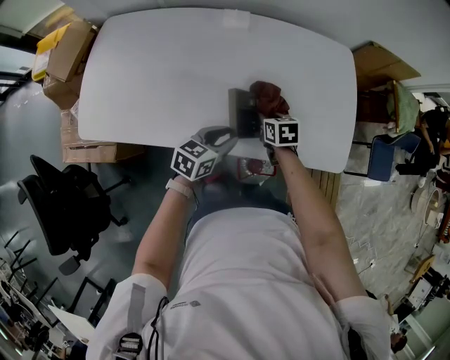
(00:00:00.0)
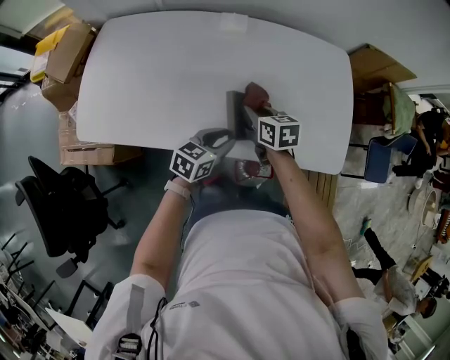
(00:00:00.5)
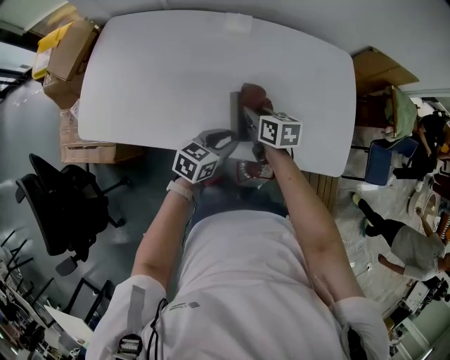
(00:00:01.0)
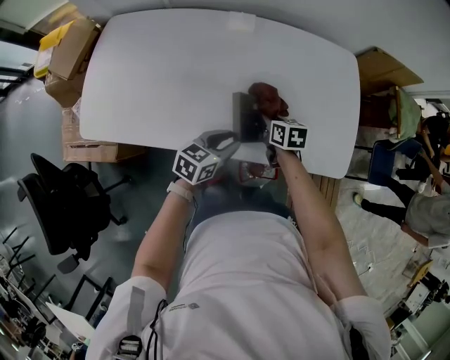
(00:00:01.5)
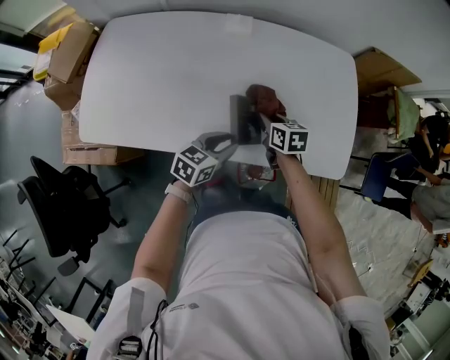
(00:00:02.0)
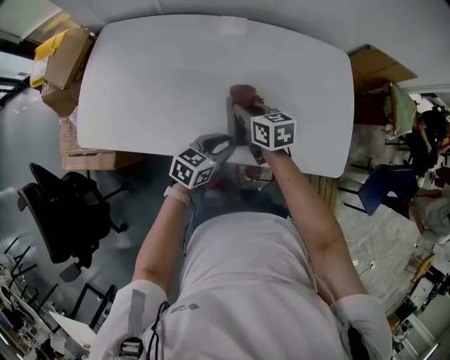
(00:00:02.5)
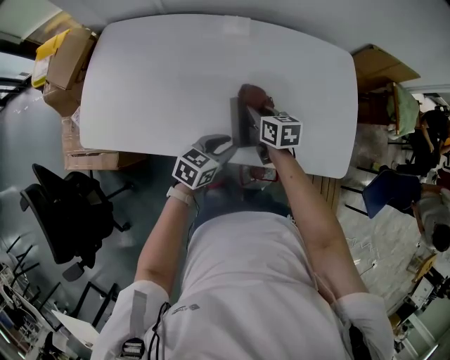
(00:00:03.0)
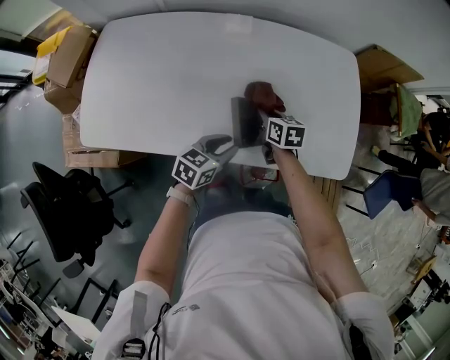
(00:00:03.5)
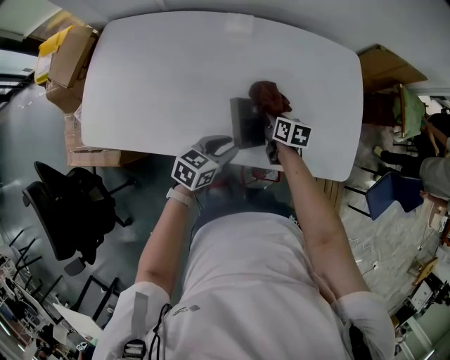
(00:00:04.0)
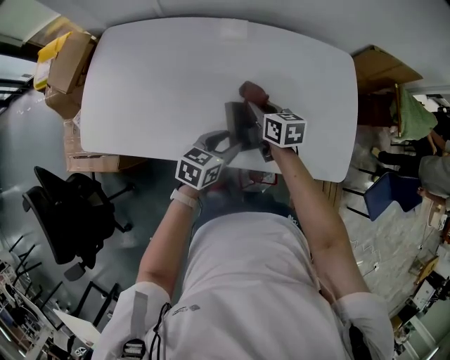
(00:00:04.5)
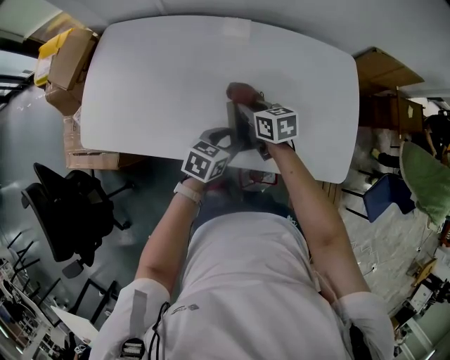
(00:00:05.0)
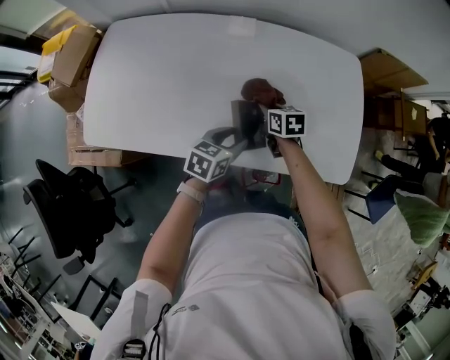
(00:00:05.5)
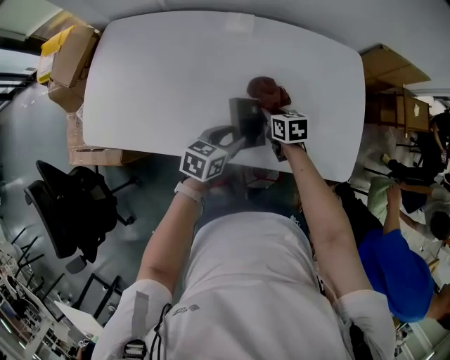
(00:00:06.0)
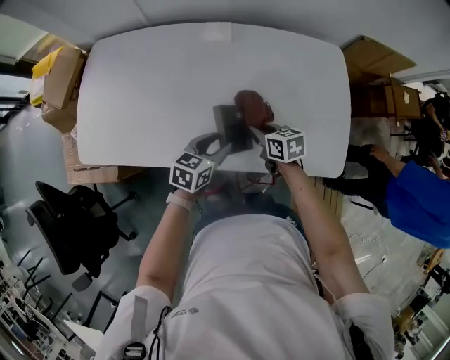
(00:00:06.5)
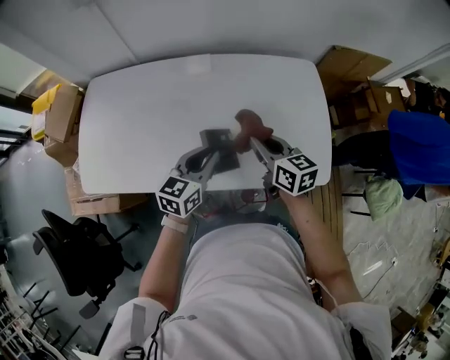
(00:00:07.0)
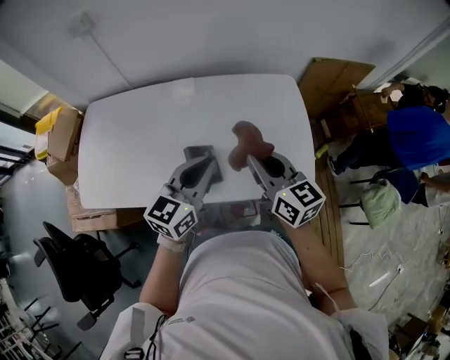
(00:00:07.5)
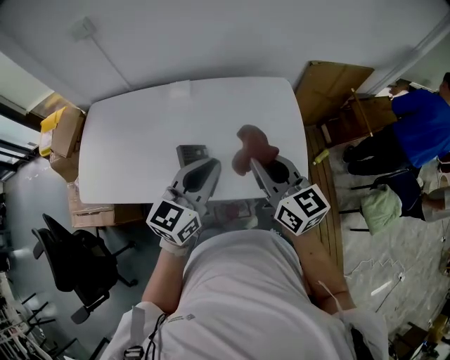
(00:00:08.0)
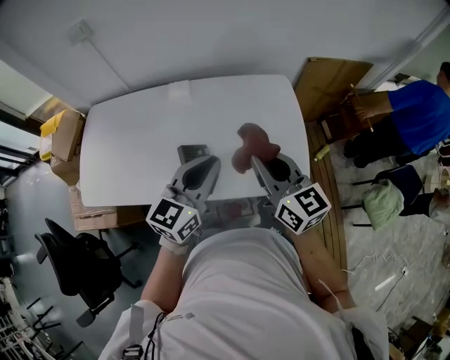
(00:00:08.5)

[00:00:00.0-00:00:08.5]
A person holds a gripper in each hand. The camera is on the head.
00:00:04.0 to 00:00:06.5: The right gripper moves about 10 cm to the left and comes back.
00:00:06.5 to 00:00:08.5: The right gripper shifts about 30 cm upward, and points its fingers approximately 40 degrees further upward; the left gripper travels upward and to the right by approximately 30 cm, swivels approximately 30 degrees, and closes up.

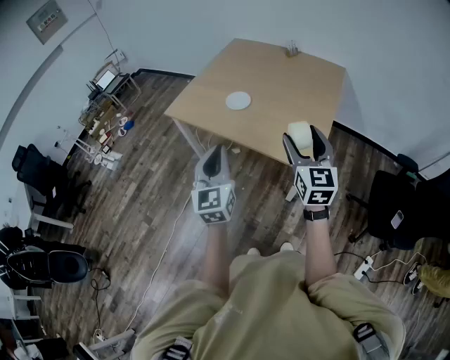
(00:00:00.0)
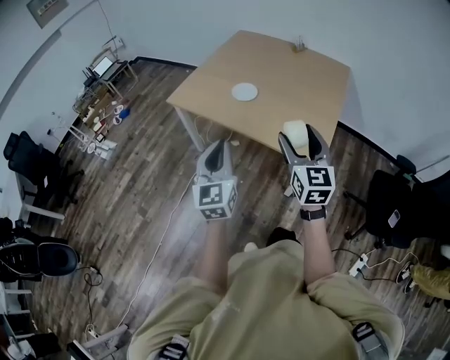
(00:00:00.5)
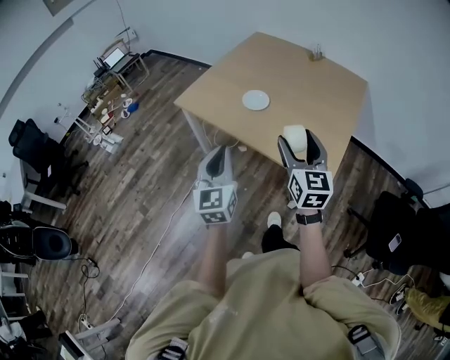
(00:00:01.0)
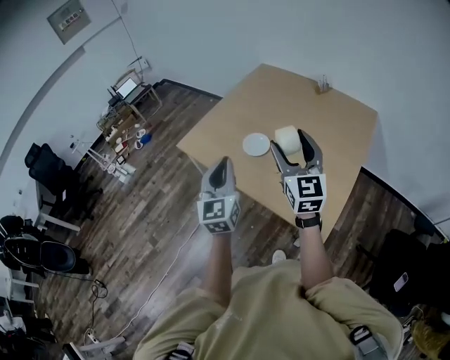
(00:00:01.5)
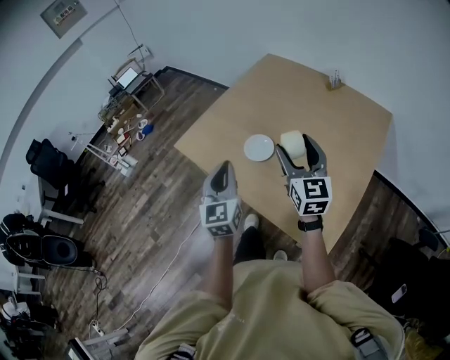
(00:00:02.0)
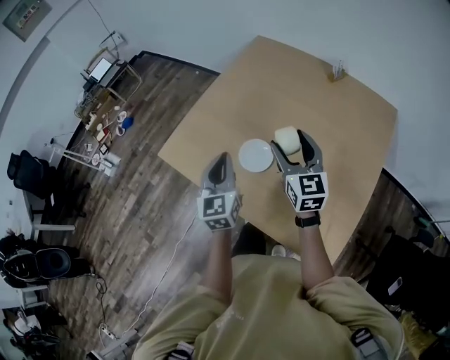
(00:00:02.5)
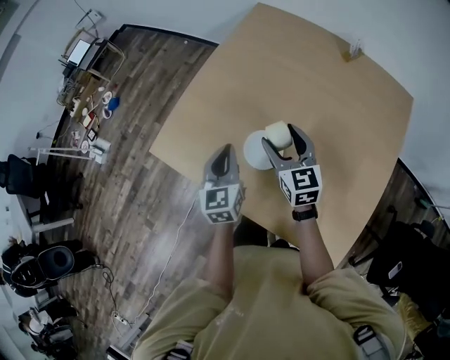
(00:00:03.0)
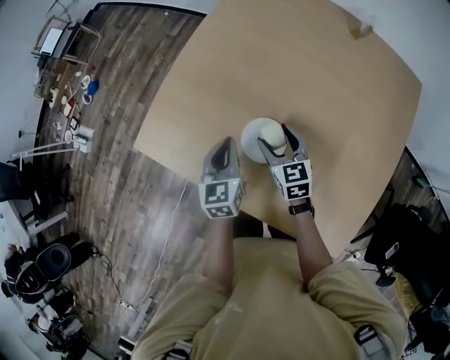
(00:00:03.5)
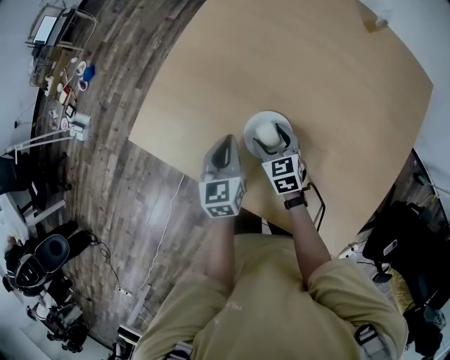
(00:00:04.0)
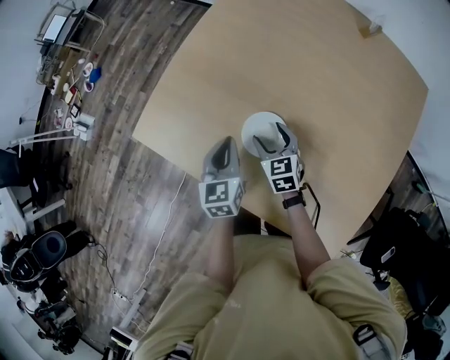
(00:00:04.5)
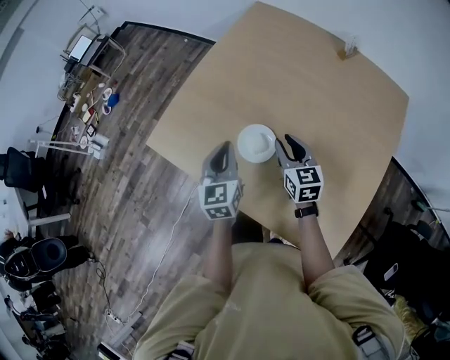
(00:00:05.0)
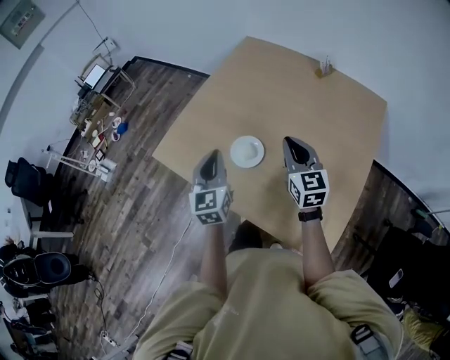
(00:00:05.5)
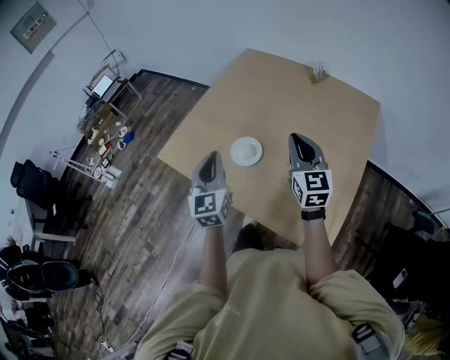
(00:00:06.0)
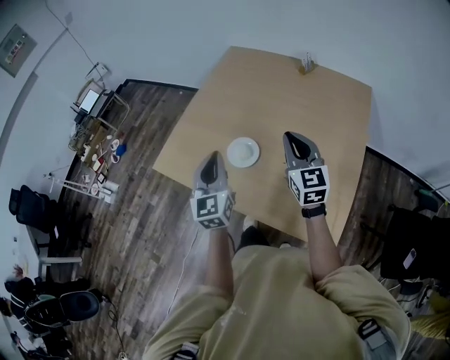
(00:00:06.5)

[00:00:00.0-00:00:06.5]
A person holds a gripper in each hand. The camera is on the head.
00:00:00.0 to 00:00:02.0: Both grippers move forward, some 35 cm.
00:00:02.0 to 00:00:04.5: The right gripper shifts roughly 40 cm downward and forward, and points its fingers roughly 40 degrees further downward, while the left gripper travels forward and downward by some 40 cm, and rotates some 30 degrees.
00:00:04.5 to 00:00:06.5: The two grippers go approximately 35 cm upward and backward. The right gripper tilts its fingers about 30 degrees upward, and closes up. Meanwhile the left gripper rotates approximately 30 degrees.

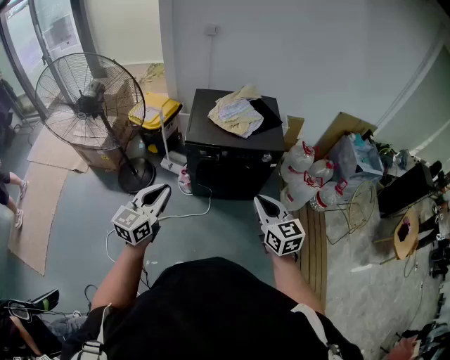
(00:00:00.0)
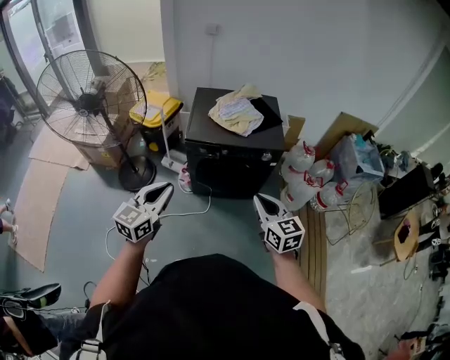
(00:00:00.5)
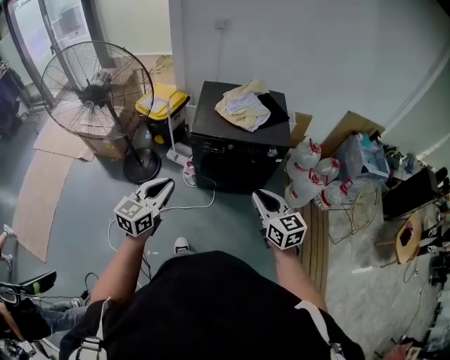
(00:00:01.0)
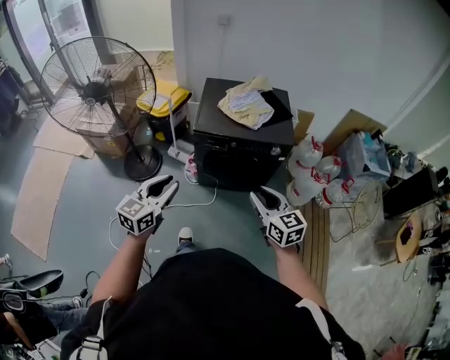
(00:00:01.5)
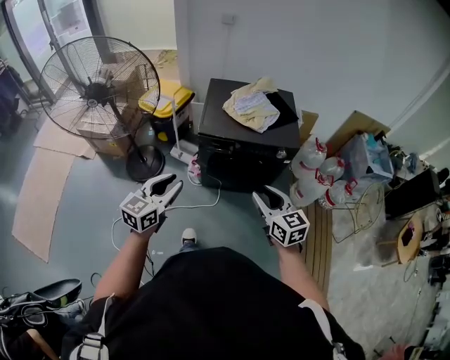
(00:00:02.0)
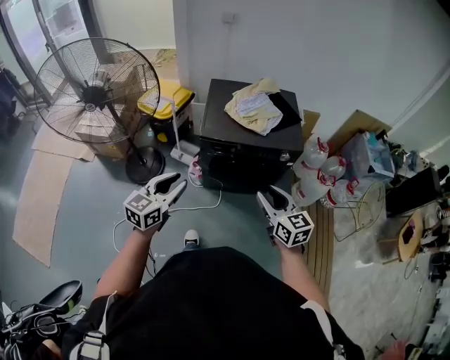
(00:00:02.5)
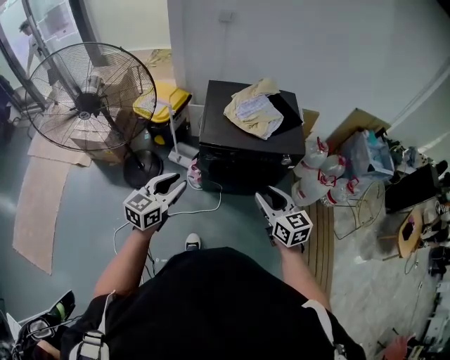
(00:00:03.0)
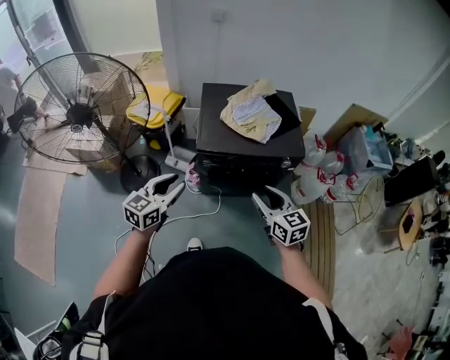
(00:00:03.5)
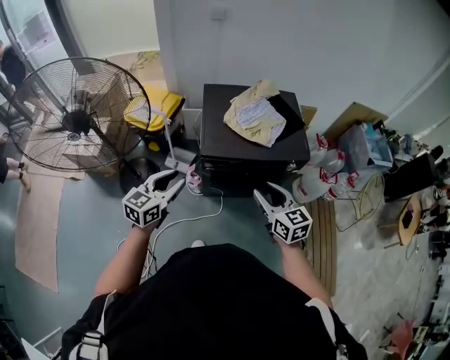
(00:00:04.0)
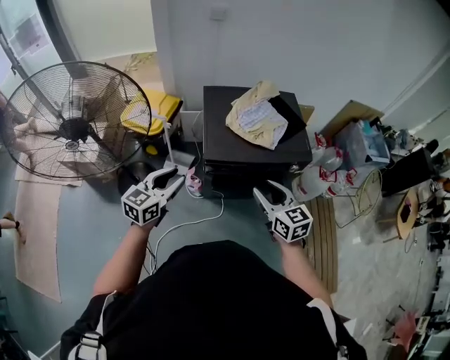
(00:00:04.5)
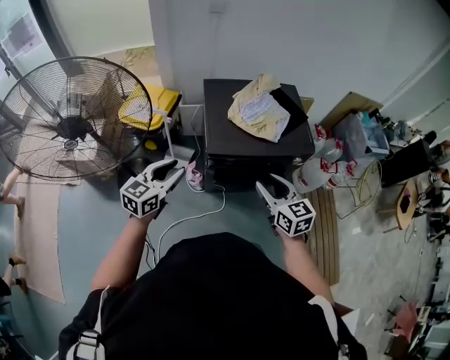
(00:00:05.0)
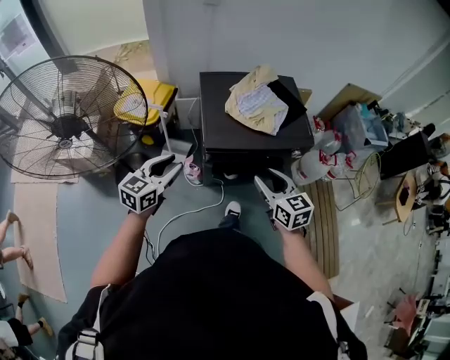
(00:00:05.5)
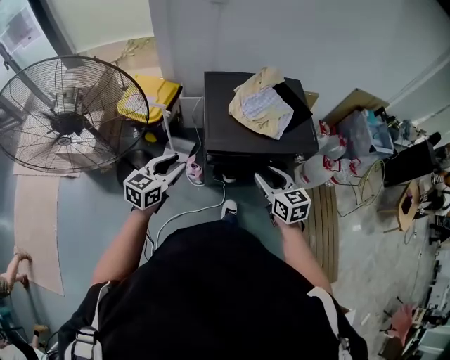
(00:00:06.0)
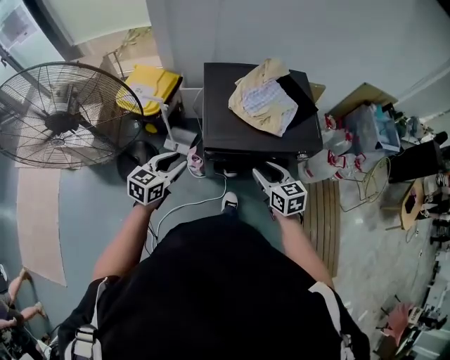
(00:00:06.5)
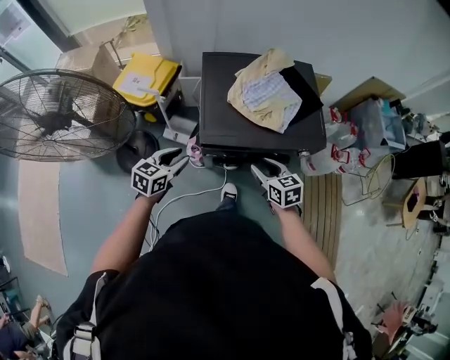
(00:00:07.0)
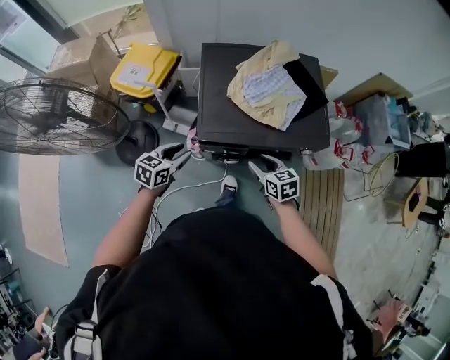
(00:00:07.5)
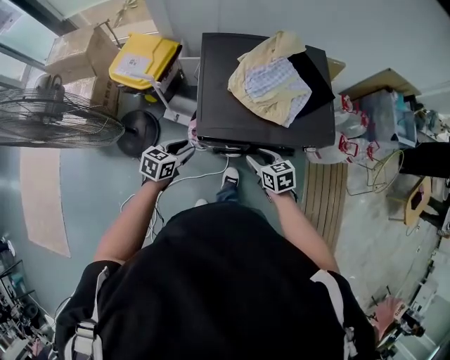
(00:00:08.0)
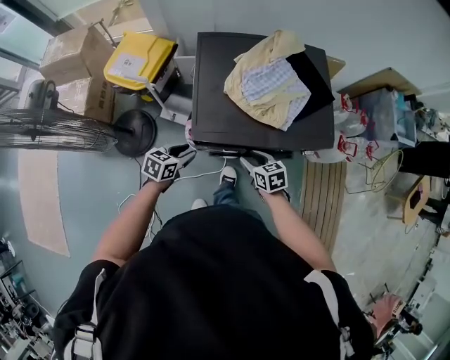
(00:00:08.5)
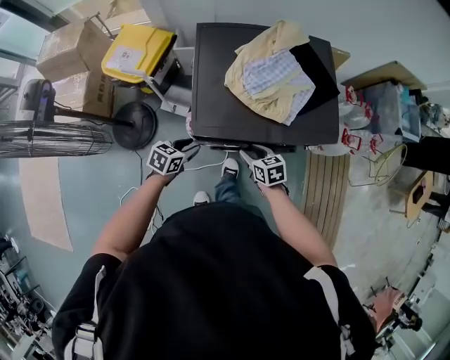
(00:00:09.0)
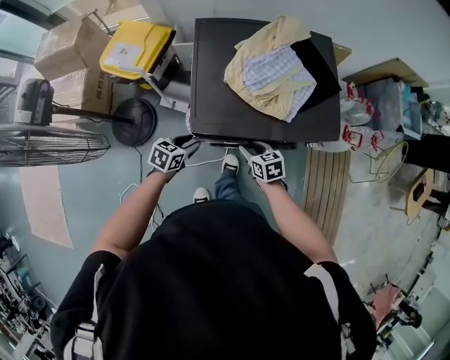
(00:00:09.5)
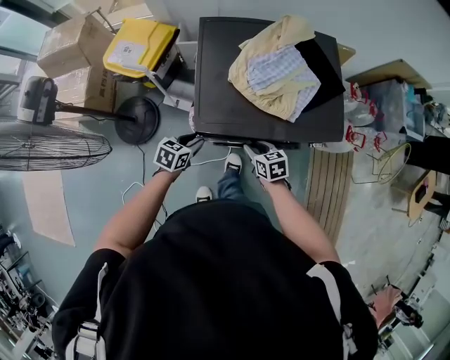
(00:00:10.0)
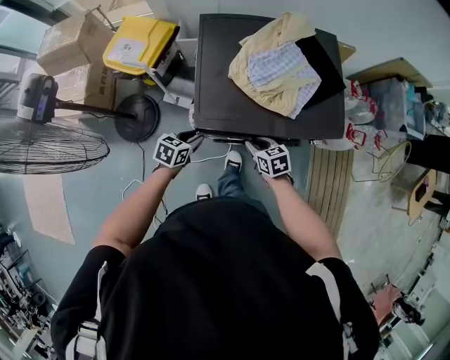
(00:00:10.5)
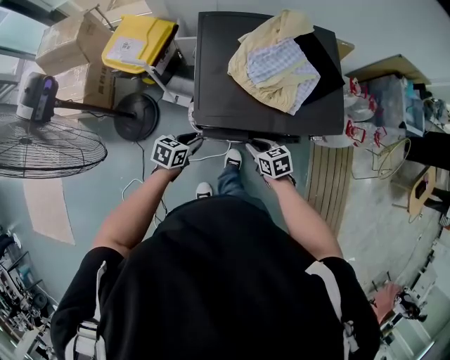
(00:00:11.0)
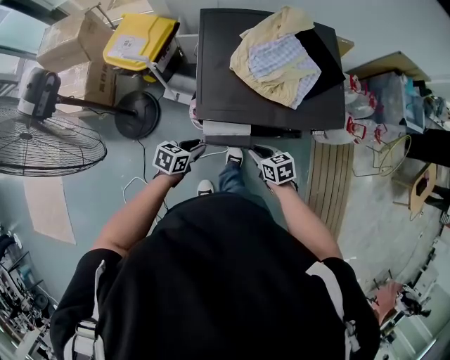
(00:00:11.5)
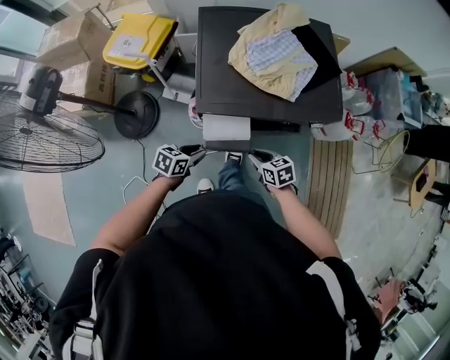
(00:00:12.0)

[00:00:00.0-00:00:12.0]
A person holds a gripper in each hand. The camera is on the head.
00:00:00.0 to 00:00:02.0: The left gripper opens up; the right gripper changes place by approximately 5 cm, and opens its fingers.
00:00:02.0 to 00:00:04.0: The right gripper travels forward and to the left by approximately 15 cm. The left gripper shifts about 20 cm forward.
00:00:04.0 to 00:00:06.0: The grippers both shift forward and downward by some 10 cm.
00:00:06.0 to 00:00:08.0: Both grippers move downward and forward, approximately 20 cm. The right gripper swivels some 20 degrees. Meanwhile the left gripper swivels approximately 20 degrees.
00:00:08.0 to 00:00:10.0: The two grippers go roughly 5 cm downward.
00:00:10.0 to 00:00:12.0: Both grippers move backward, about 10 cm.
